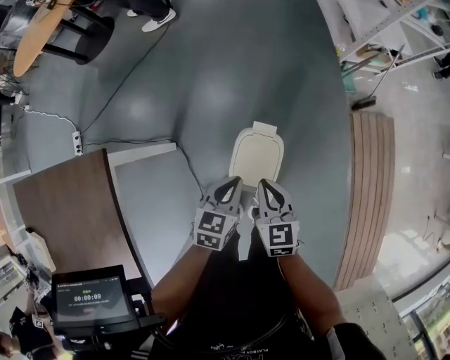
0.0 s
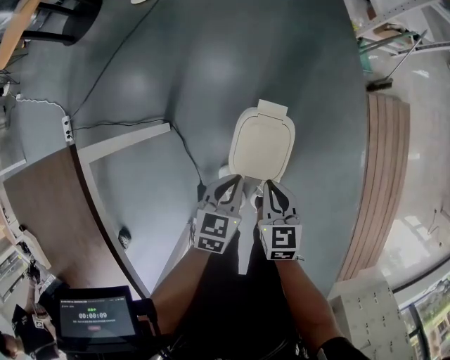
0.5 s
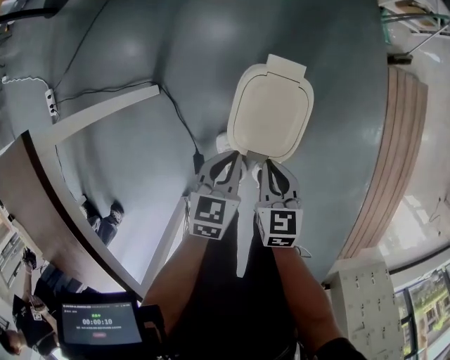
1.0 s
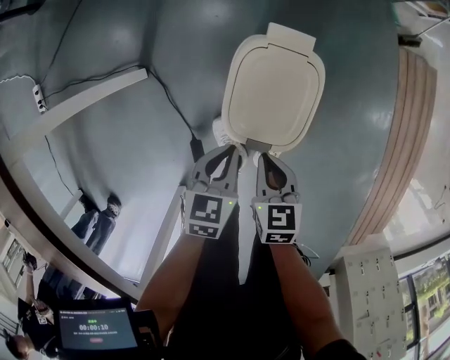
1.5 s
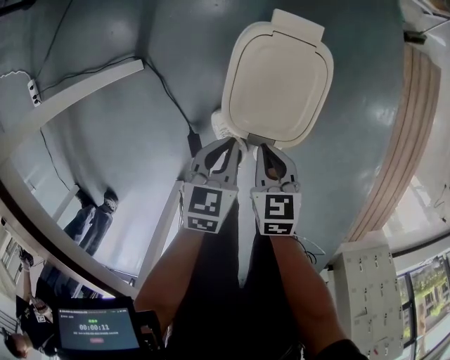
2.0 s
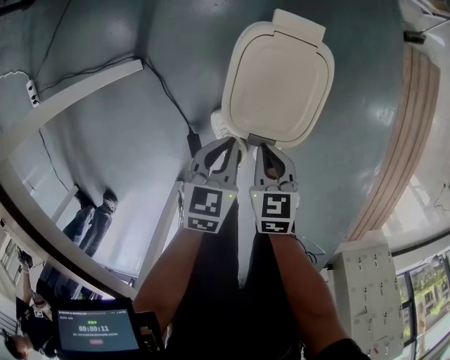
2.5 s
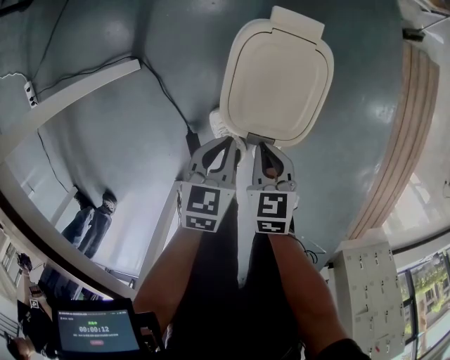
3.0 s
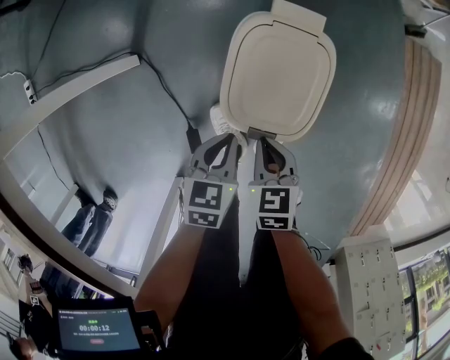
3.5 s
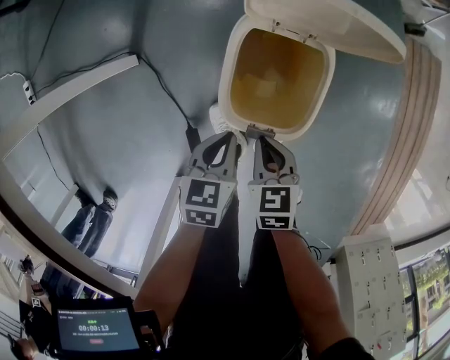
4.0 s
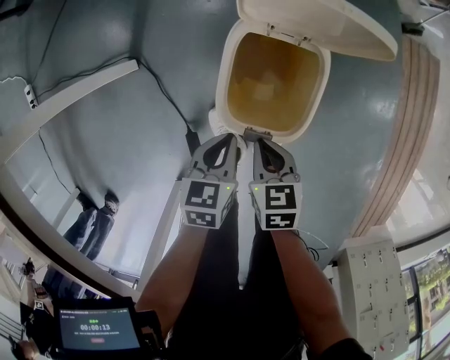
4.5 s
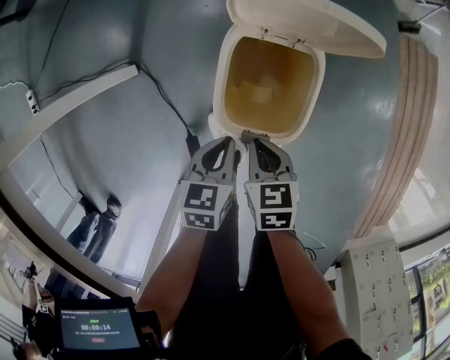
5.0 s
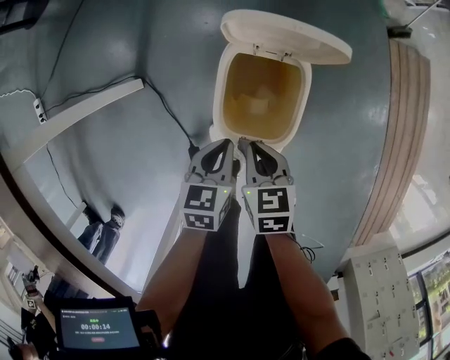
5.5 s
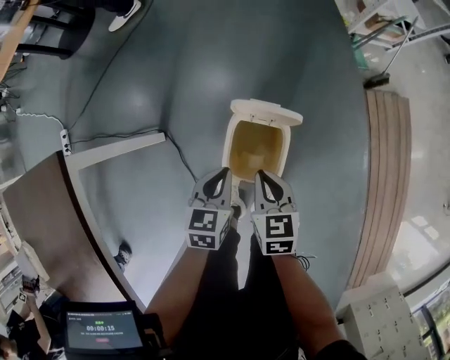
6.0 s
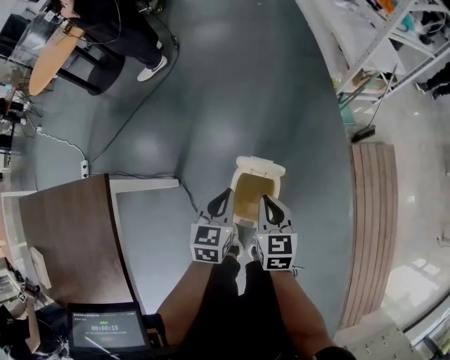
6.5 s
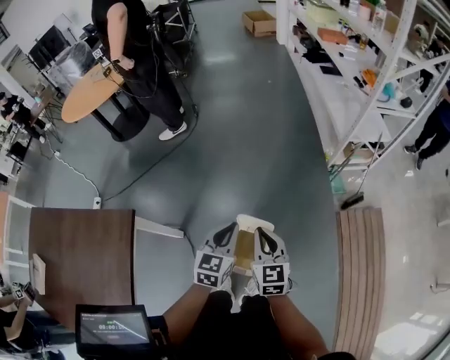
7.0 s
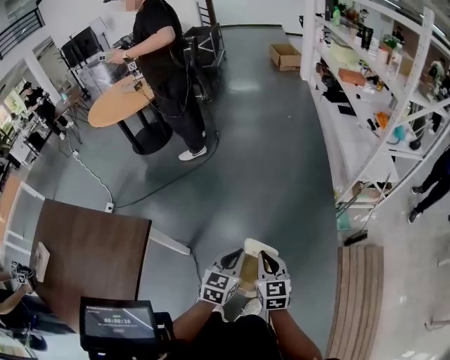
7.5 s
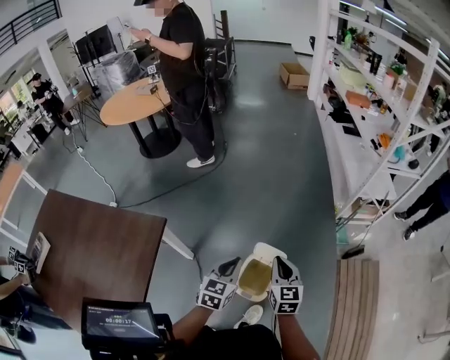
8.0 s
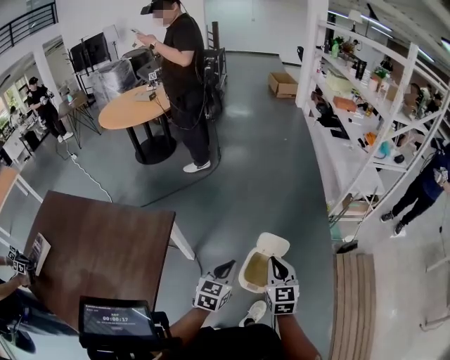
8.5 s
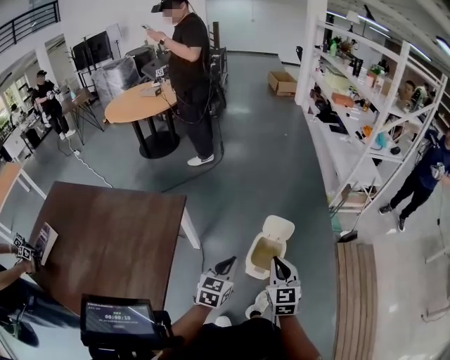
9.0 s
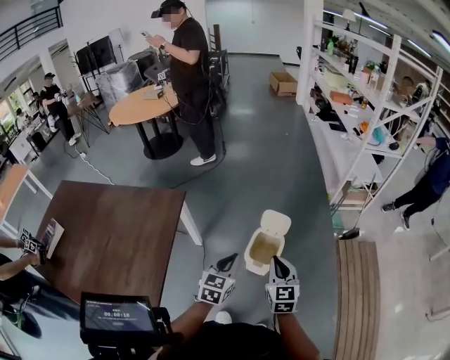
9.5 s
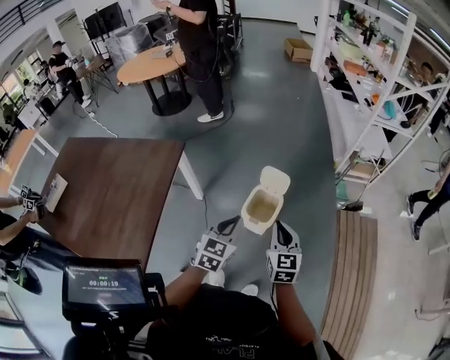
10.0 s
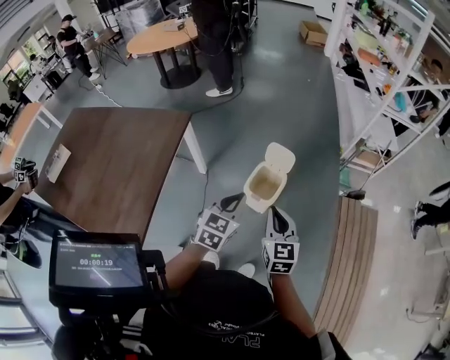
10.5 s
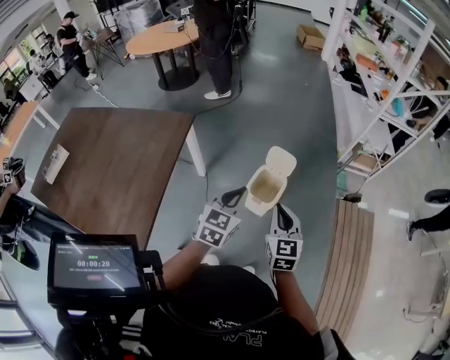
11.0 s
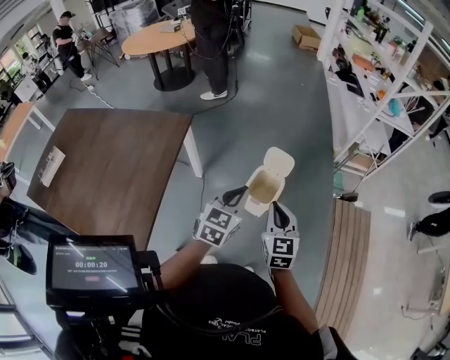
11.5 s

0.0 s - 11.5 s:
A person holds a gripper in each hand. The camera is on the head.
0.0 s - 2.0 s: Both grippers move downward, some 35 cm. The right gripper turns by approximately 30 degrees.
2.0 s - 4.0 s: The grippers make only small movements.
4.0 s - 6.0 s: The grippers both shift upward and forward by some 25 cm.
6.0 s - 7.5 s: The two grippers go roughly 35 cm upward. The right gripper swivels approximately 20 degrees.
7.5 s - 9.5 s: The two grippers go roughly 30 cm backward.
9.5 s - 11.5 s: The right gripper is displaced backward by roughly 5 cm. Meanwhile the left gripper heads upward and backward, covering approximately 5 cm.

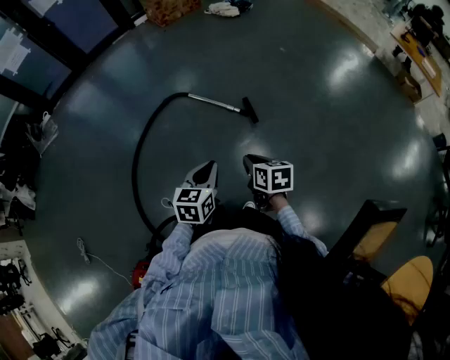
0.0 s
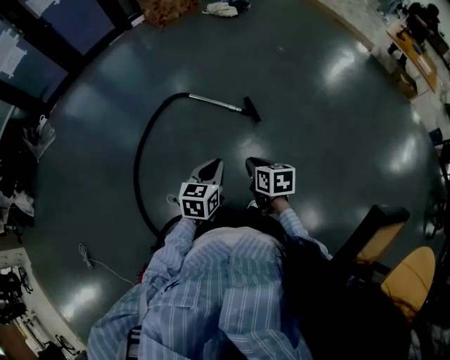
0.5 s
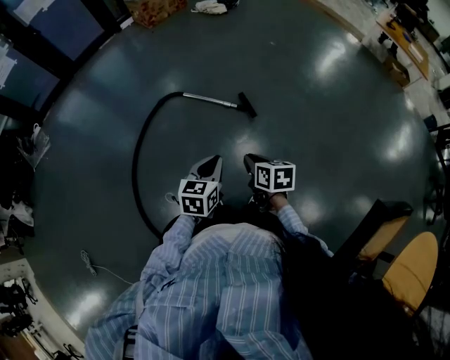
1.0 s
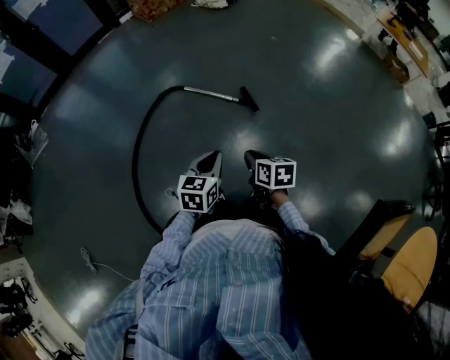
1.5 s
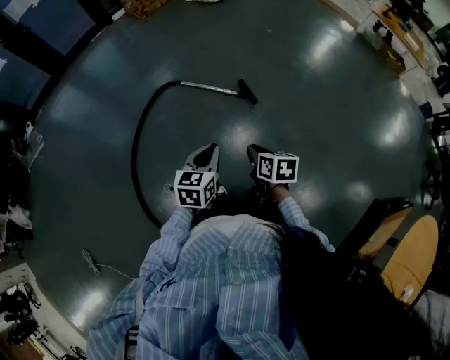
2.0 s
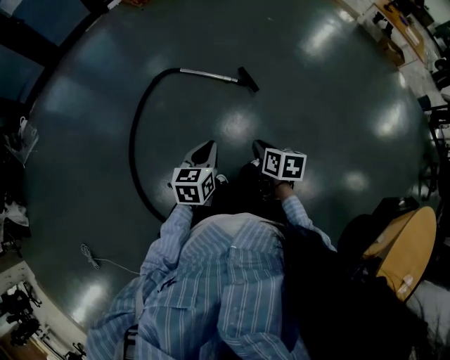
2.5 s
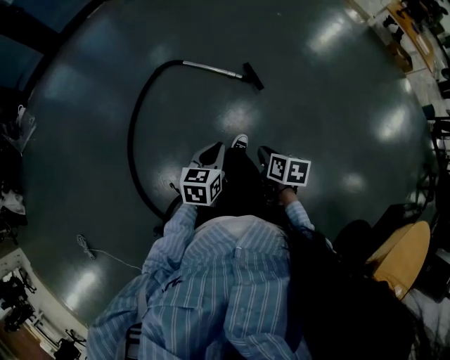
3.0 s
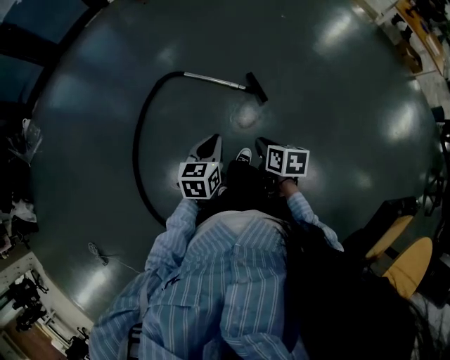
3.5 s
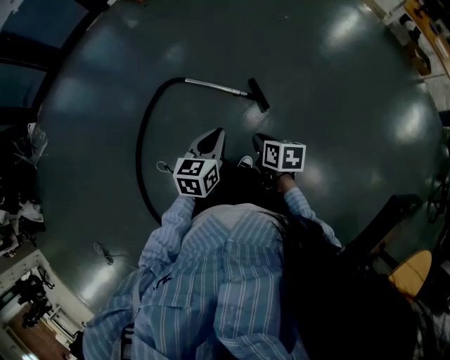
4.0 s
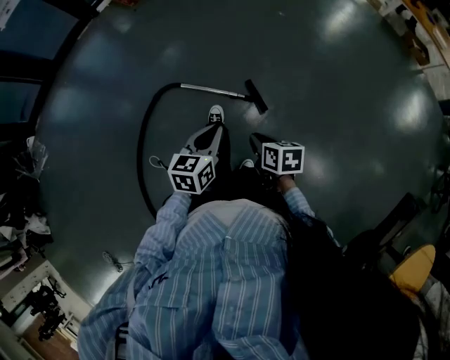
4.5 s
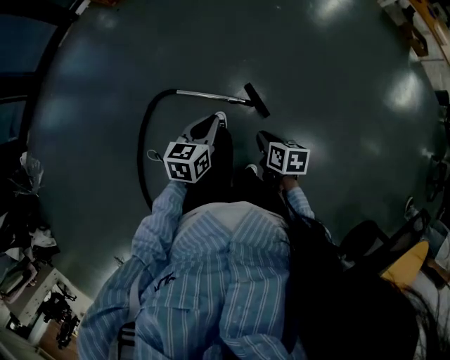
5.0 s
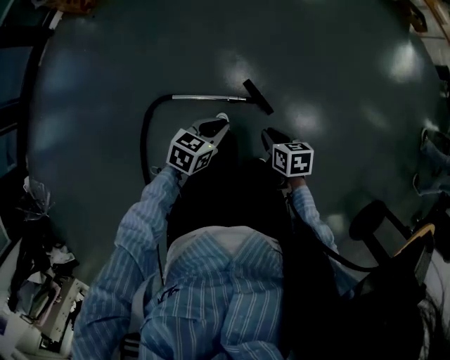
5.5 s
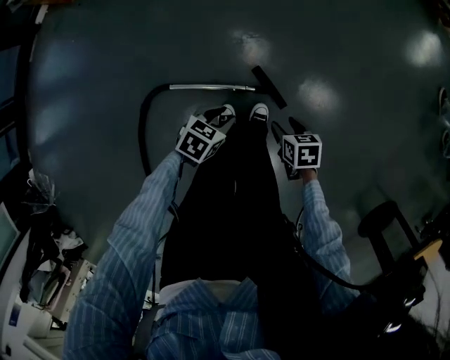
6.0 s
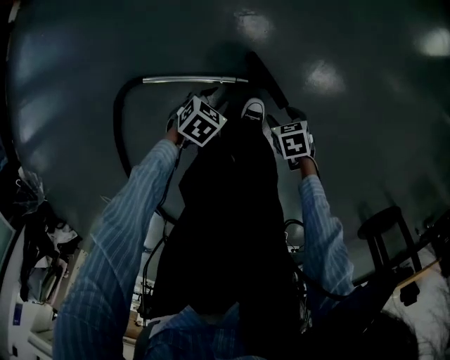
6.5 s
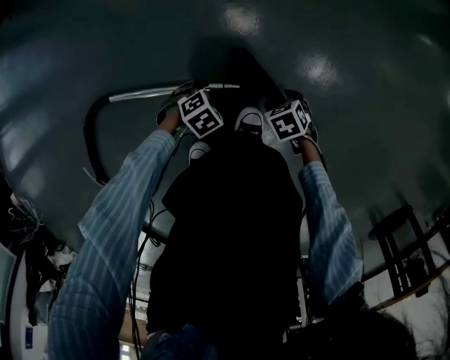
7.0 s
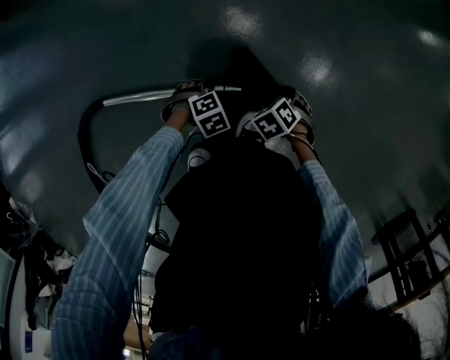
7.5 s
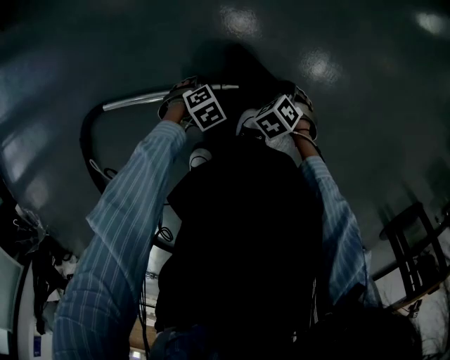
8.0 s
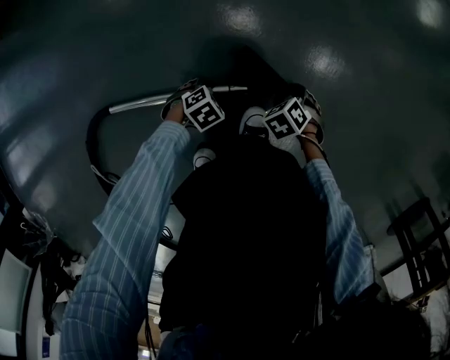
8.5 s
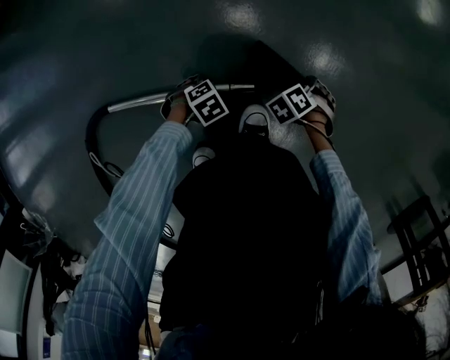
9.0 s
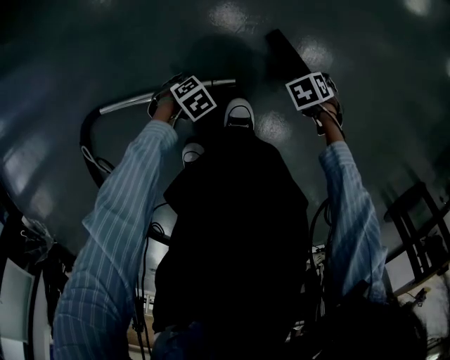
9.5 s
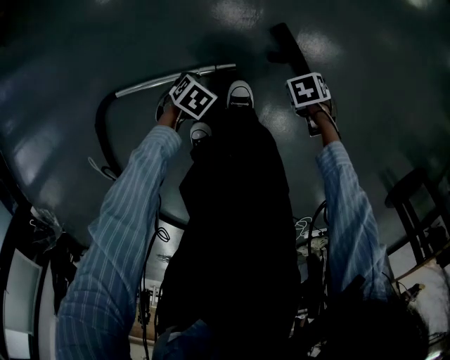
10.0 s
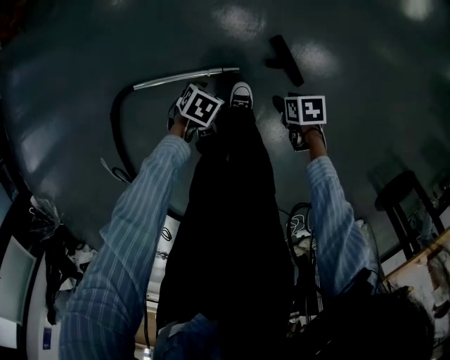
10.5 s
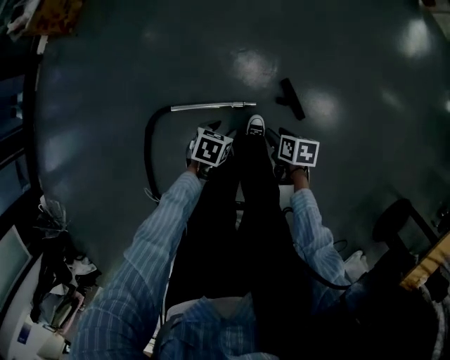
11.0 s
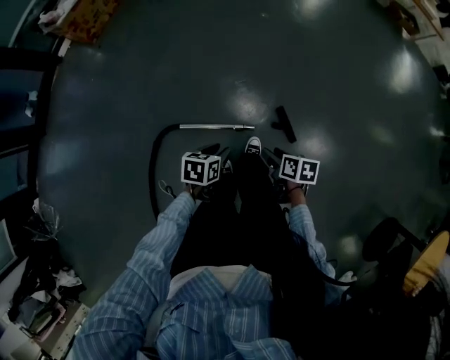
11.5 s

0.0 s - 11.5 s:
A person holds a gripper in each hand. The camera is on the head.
0.0 s - 2.0 s: The grippers both shift to the left by about 10 cm.
2.0 s - 4.0 s: Both grippers travel together forward, approximately 25 cm.
4.0 s - 6.0 s: The left gripper moves about 50 cm, changes its angle by approximately 50 degrees, and opens; the right gripper shifts by about 40 cm, and opens its fingers.
6.0 s - 7.5 s: Both grippers travel together downward, roughly 50 cm. The left gripper rotates some 50 degrees. The right gripper rotates roughly 40 degrees.
7.5 s - 9.5 s: The right gripper moves some 15 cm, and turns by approximately 20 degrees.
9.5 s - 11.5 s: Both grippers move upward, roughly 60 cm. The right gripper rotates some 60 degrees; the left gripper swivels roughly 70 degrees.

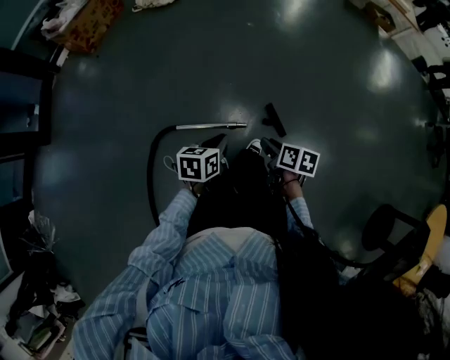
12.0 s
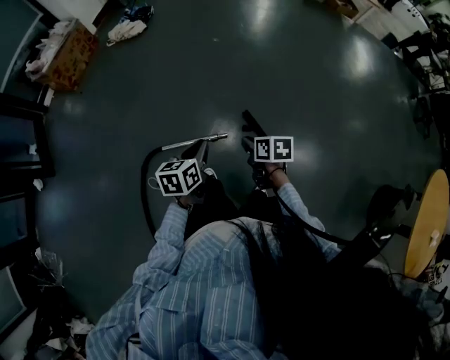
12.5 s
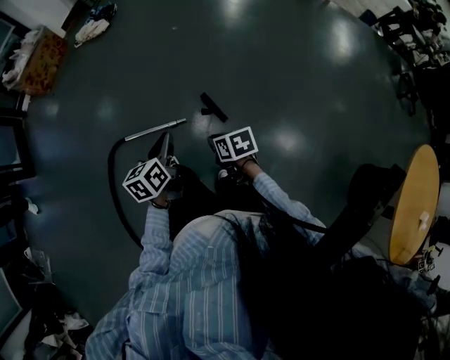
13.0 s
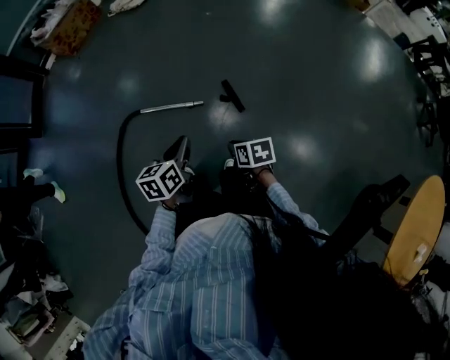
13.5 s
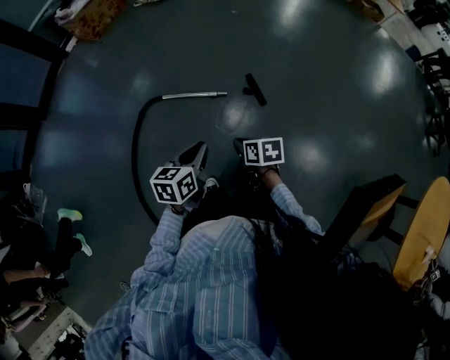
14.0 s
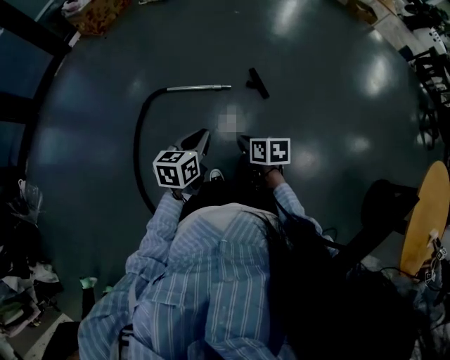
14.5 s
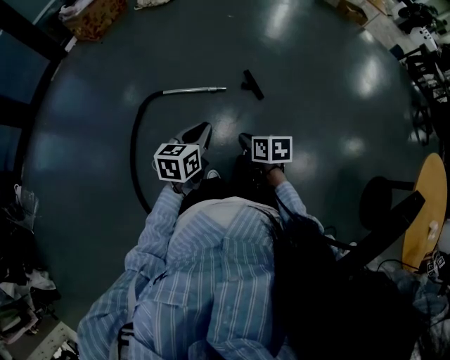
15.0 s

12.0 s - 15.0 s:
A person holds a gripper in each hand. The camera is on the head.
12.0 s - 13.5 s: Both grippers travel together backward and to the right, about 30 cm. The right gripper rotates some 30 degrees, and closes.
13.5 s - 15.0 s: The right gripper moves to the left and backward, some 25 cm. The left gripper shifts some 25 cm backward and to the left.

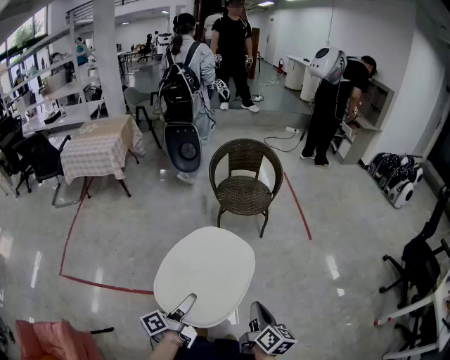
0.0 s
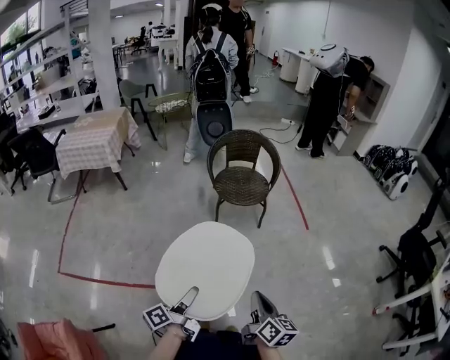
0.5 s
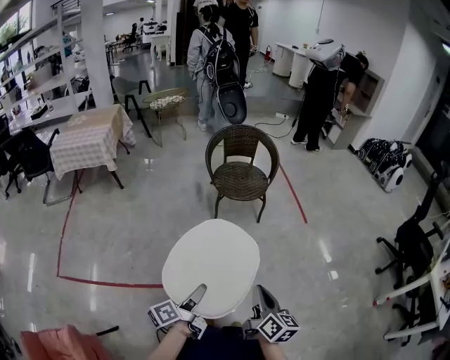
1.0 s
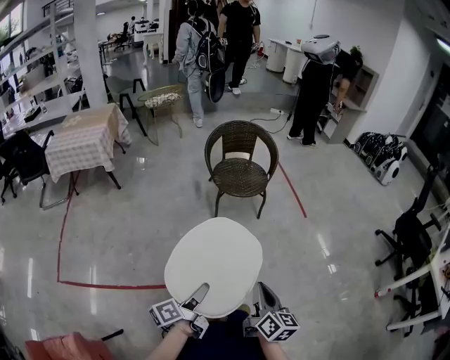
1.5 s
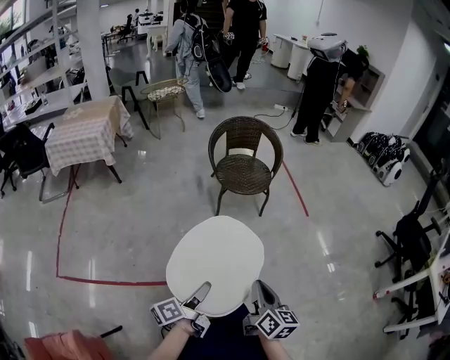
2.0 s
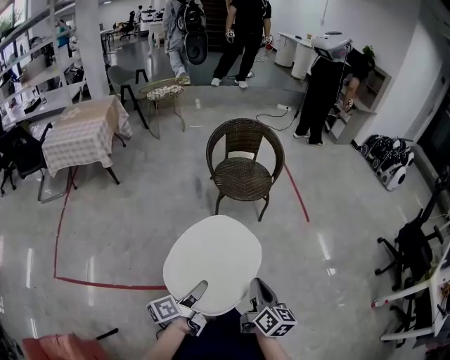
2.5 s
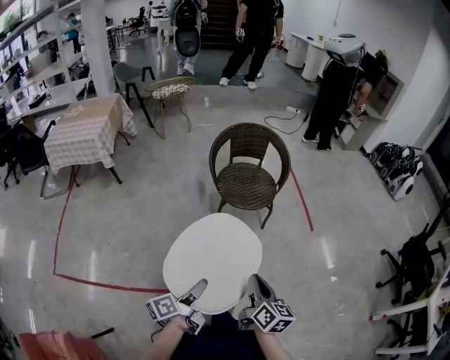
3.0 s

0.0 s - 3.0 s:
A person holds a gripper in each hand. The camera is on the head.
0.0 s - 1.5 s: The right gripper ends up some 10 cm from where it was.
1.5 s - 3.0 s: The right gripper changes place by about 15 cm.
